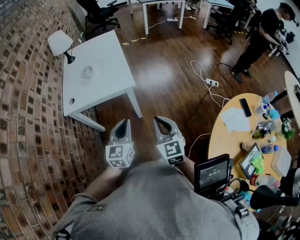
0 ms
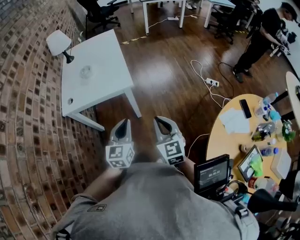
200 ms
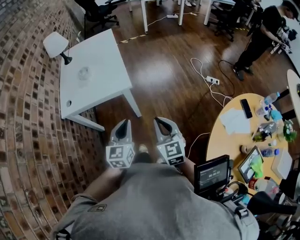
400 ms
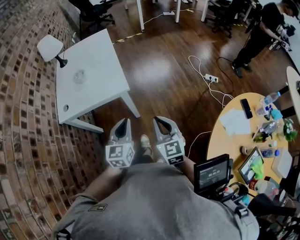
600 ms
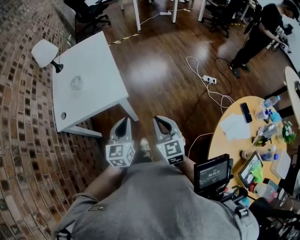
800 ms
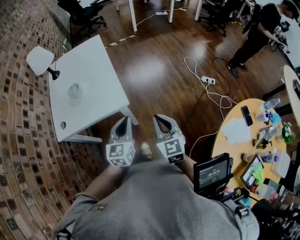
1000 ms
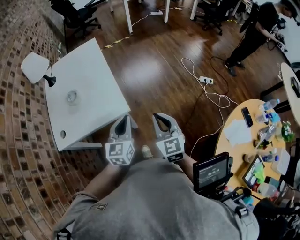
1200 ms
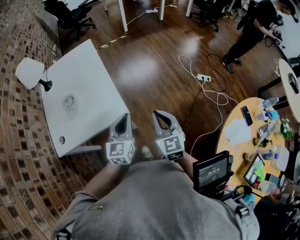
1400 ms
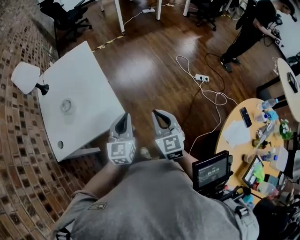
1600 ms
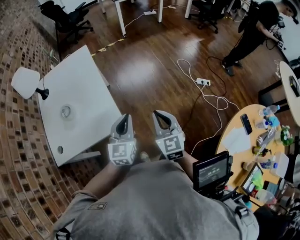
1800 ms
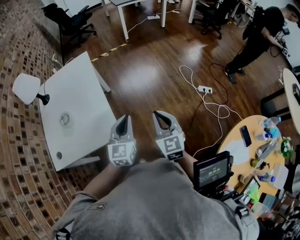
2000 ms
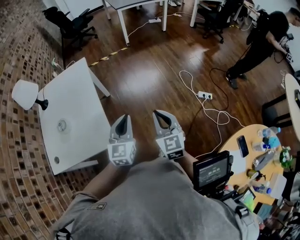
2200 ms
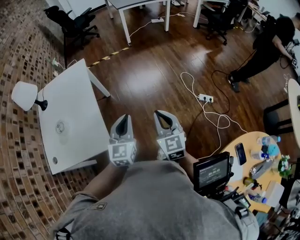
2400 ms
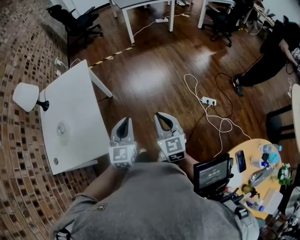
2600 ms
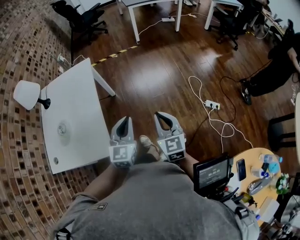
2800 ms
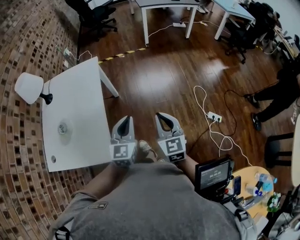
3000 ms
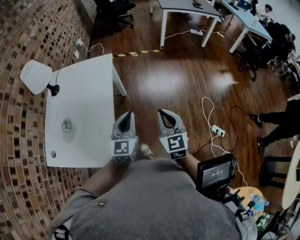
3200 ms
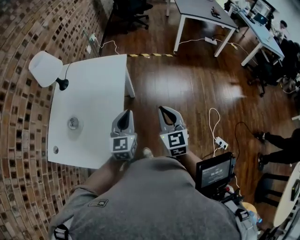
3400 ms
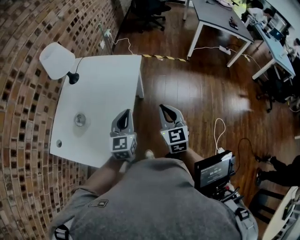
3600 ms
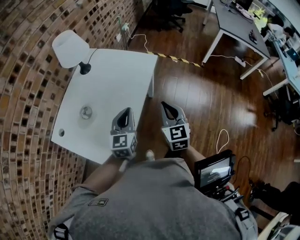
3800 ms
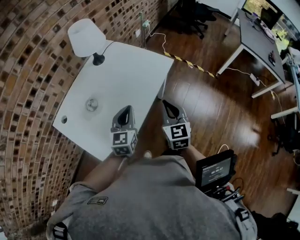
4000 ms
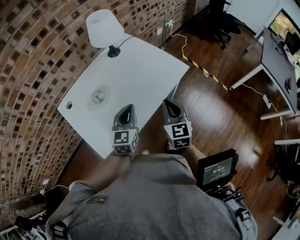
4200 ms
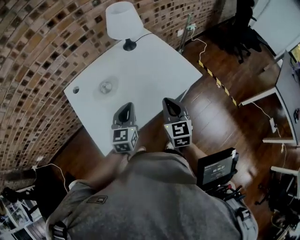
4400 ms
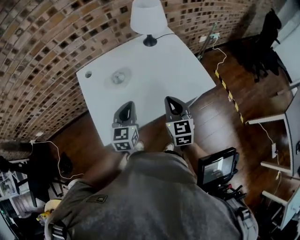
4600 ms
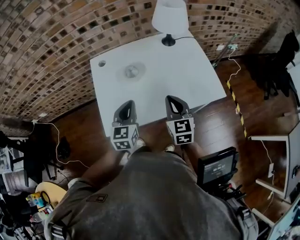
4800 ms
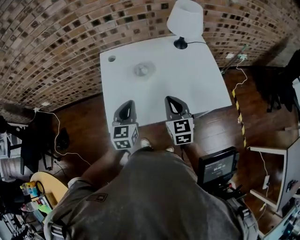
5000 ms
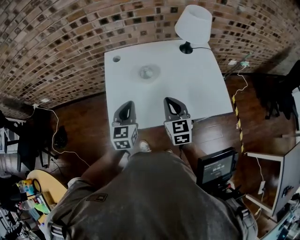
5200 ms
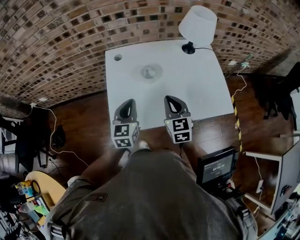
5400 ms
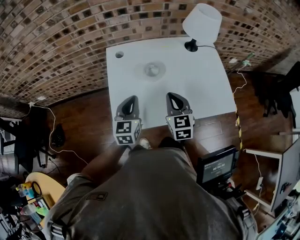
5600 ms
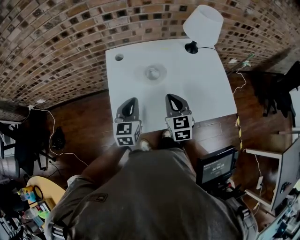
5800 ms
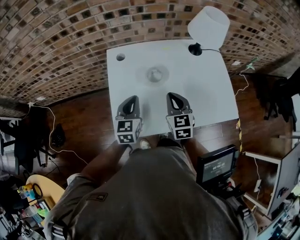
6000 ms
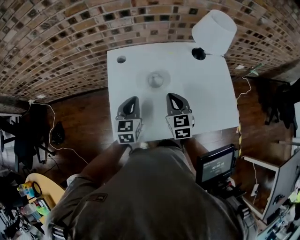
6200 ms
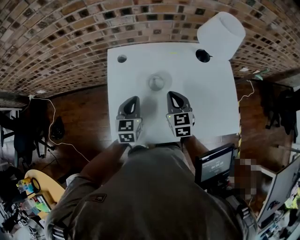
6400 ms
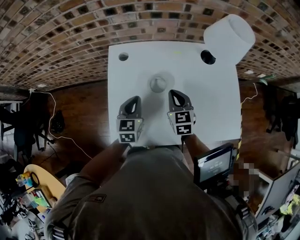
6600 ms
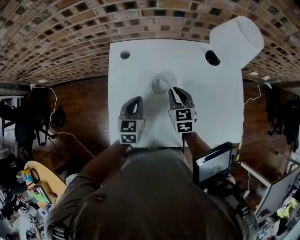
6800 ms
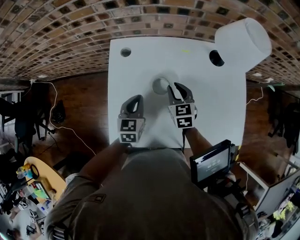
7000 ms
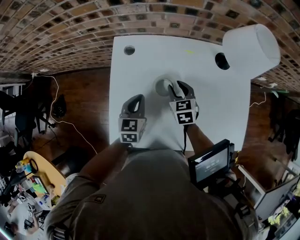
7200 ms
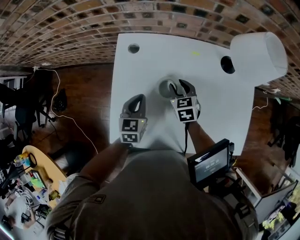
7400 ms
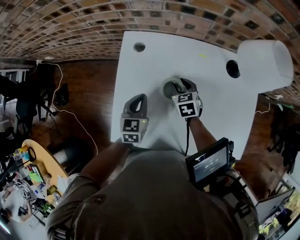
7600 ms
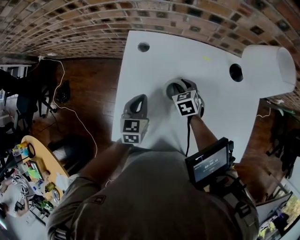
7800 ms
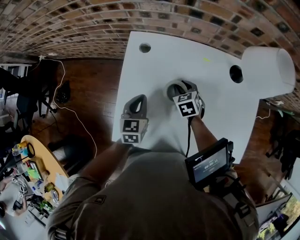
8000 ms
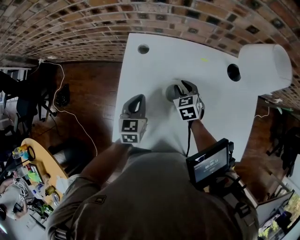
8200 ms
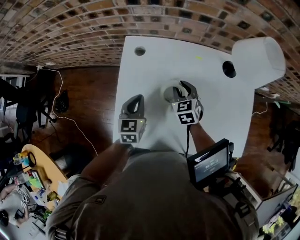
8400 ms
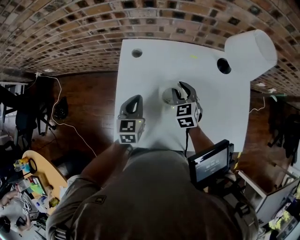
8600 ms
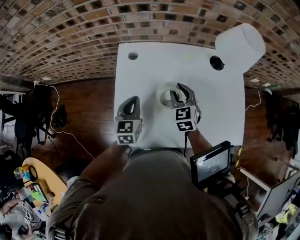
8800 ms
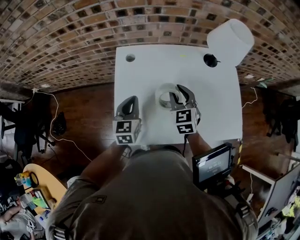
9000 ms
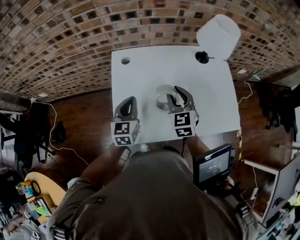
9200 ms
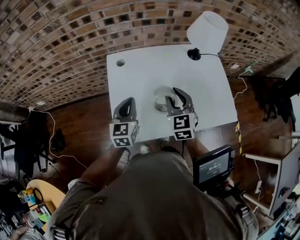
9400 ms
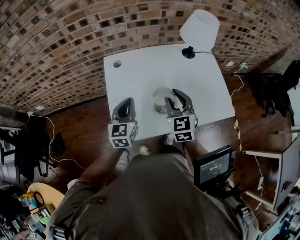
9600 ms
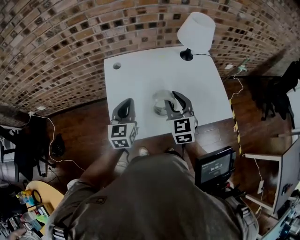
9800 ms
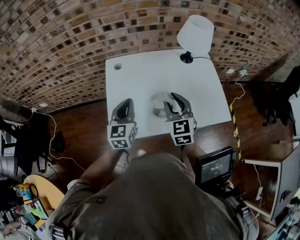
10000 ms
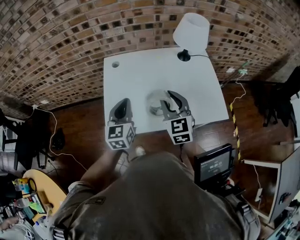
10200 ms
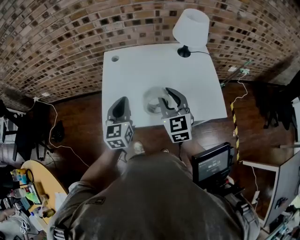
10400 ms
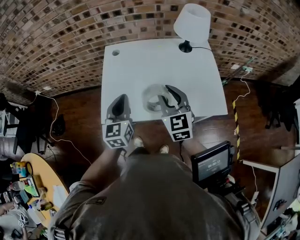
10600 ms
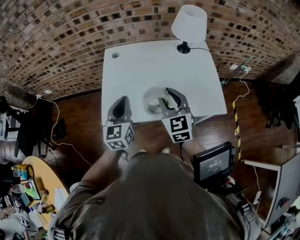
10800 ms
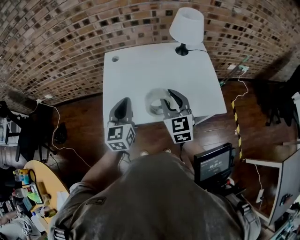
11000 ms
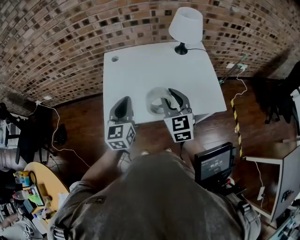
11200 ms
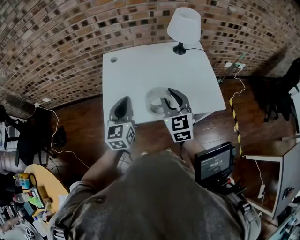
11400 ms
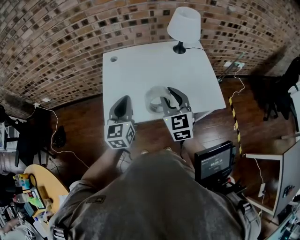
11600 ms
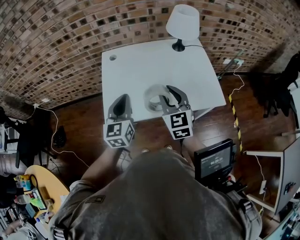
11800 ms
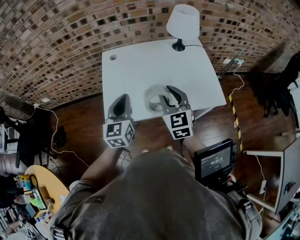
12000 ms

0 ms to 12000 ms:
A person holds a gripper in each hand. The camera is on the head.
0 ms to 1600 ms: The grippers both shift forward by approximately 25 cm.
1600 ms to 3000 ms: Both grippers move forward and to the right, some 25 cm.
3000 ms to 4400 ms: The left gripper changes place by some 30 cm, and rotates some 70 degrees, while the right gripper shifts by approximately 40 cm, and swivels approximately 60 degrees.
4400 ms to 6000 ms: The left gripper shifts by approximately 20 cm, and rotates roughly 30 degrees. Meanwhile the right gripper shifts by about 20 cm, and swivels approximately 30 degrees.
6000 ms to 7600 ms: The left gripper shifts about 10 cm downward and forward, while the right gripper goes roughly 25 cm forward and downward, swivels some 30 degrees, and opens its fingers.
7600 ms to 9000 ms: The right gripper moves upward and backward, about 15 cm, and swivels about 30 degrees; the left gripper moves upward, approximately 5 cm.
9000 ms to 10400 ms: The two grippers go some 20 cm backward, upward and to the right.
10400 ms to 12000 ms: The grippers stay close to where they were, moving slightly.

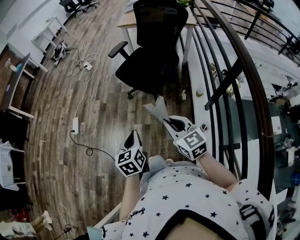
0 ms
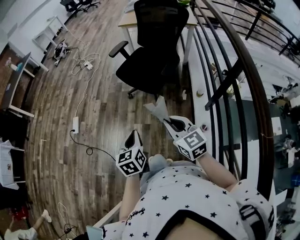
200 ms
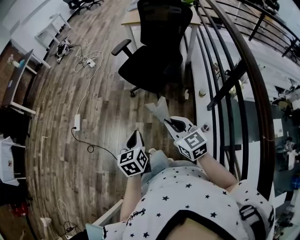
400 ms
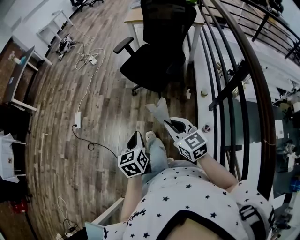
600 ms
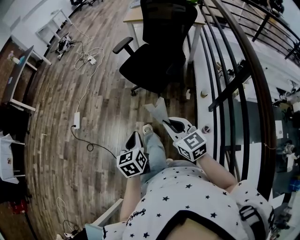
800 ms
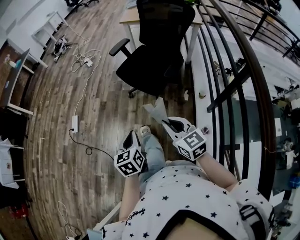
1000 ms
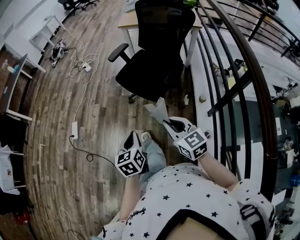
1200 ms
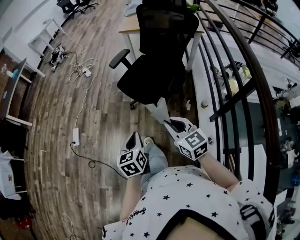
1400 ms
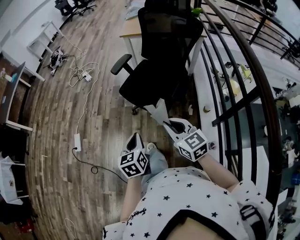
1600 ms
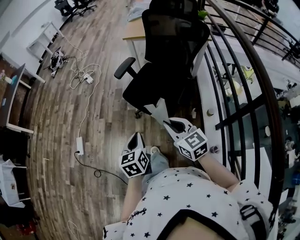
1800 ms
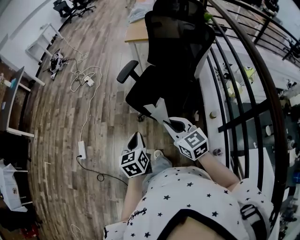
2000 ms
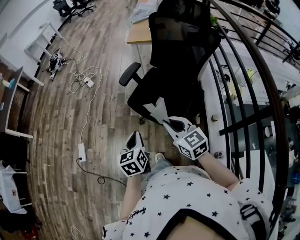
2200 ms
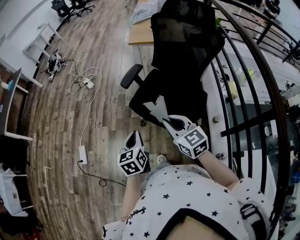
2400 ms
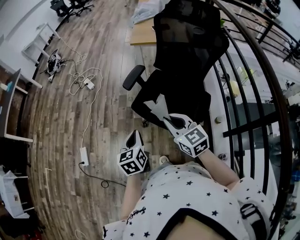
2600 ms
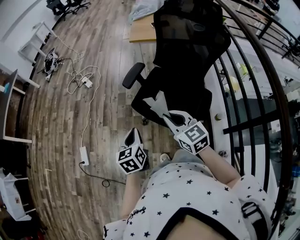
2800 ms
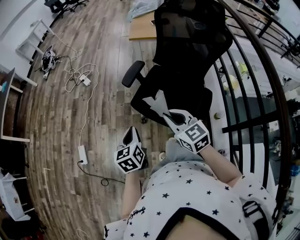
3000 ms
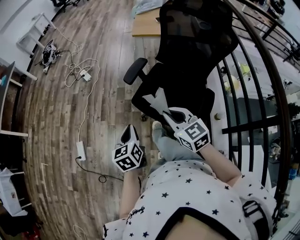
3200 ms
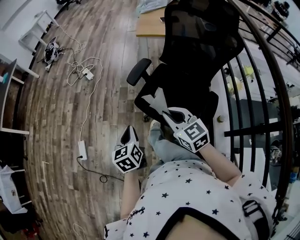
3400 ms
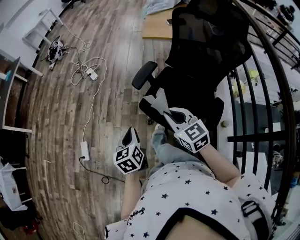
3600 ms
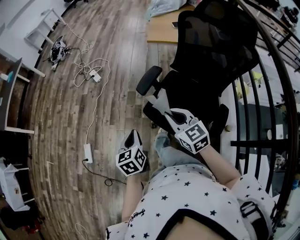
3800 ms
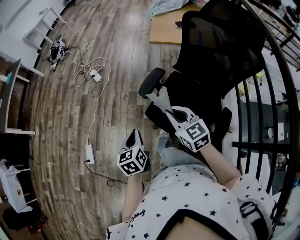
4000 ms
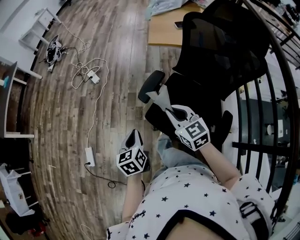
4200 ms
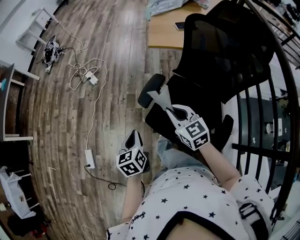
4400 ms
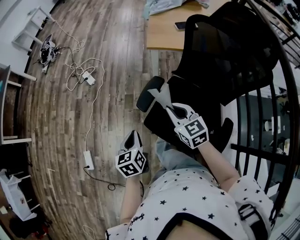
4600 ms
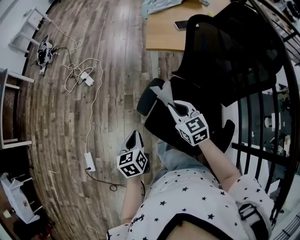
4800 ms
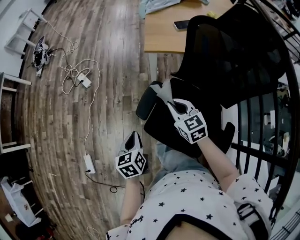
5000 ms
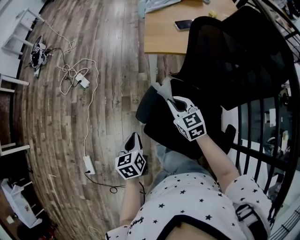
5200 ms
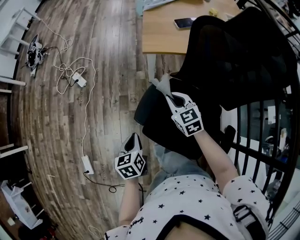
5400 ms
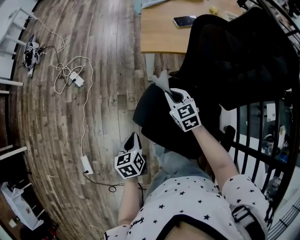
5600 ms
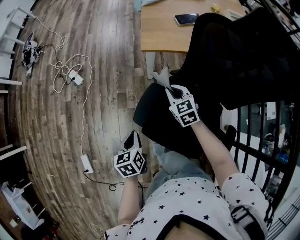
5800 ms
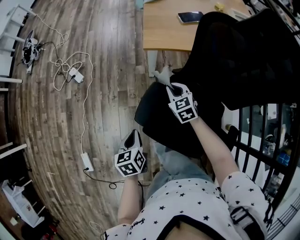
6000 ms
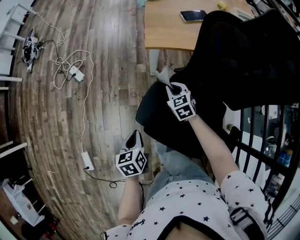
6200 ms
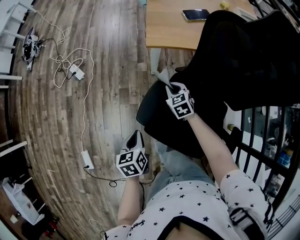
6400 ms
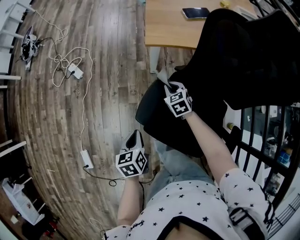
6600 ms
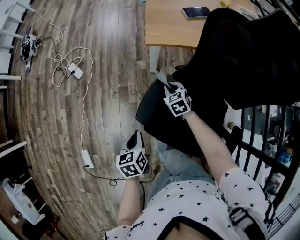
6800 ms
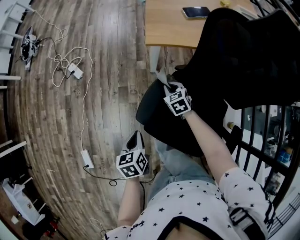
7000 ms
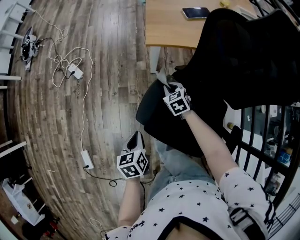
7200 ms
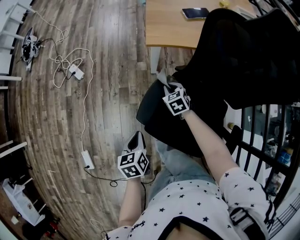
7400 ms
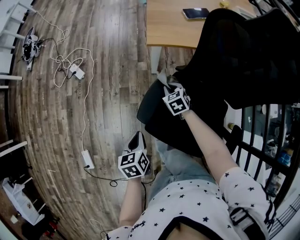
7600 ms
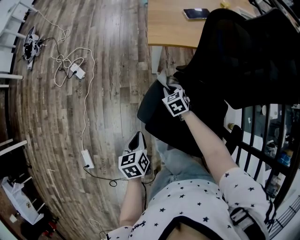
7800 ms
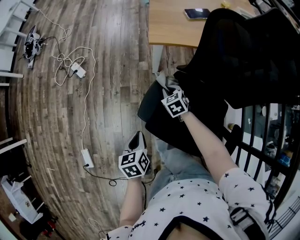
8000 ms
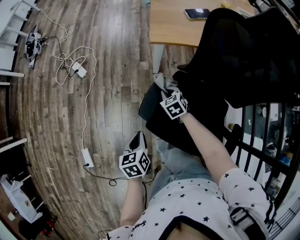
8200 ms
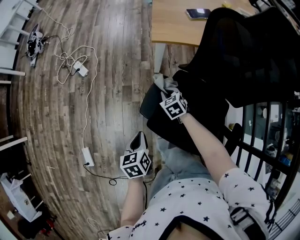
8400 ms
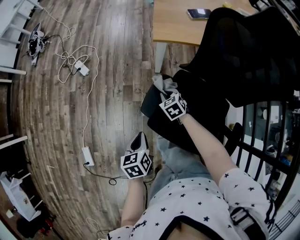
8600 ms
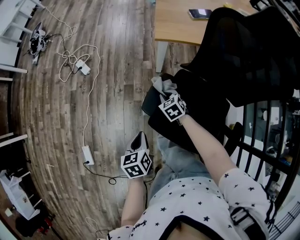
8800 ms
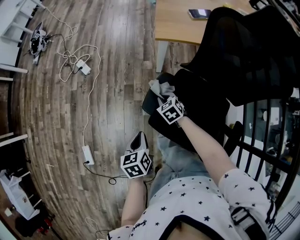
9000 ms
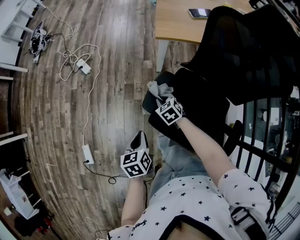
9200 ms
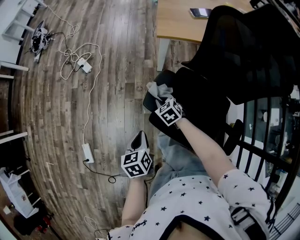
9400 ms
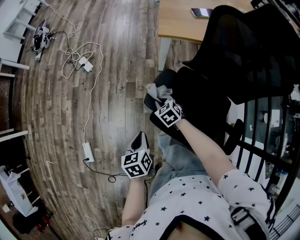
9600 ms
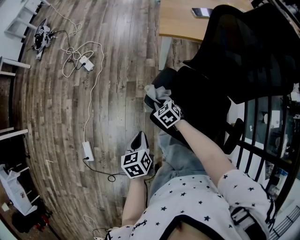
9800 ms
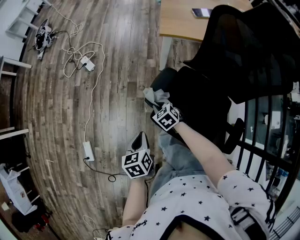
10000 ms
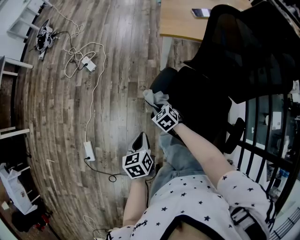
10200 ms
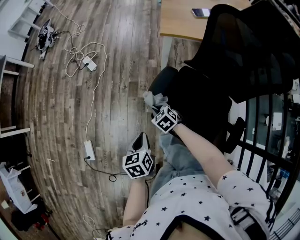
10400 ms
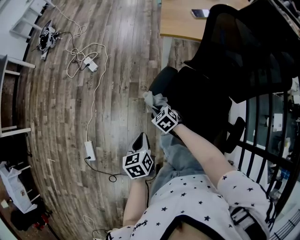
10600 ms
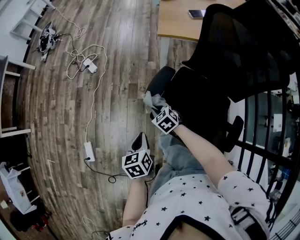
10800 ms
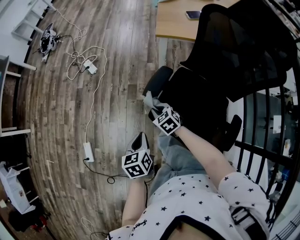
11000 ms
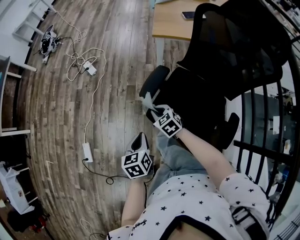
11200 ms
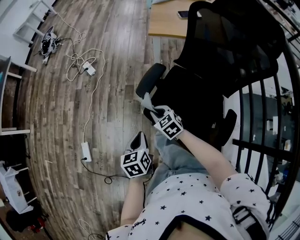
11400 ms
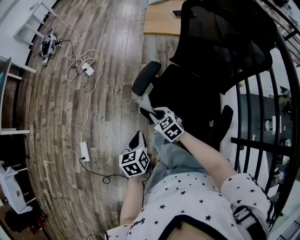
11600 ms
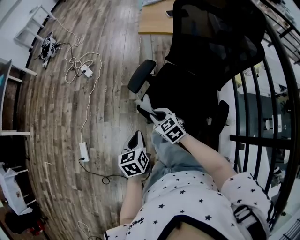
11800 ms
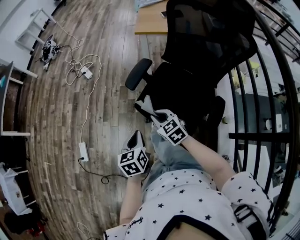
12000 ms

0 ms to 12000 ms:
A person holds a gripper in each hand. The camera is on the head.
0 ms to 1600 ms: The two grippers go about 20 cm forward.
1600 ms to 3000 ms: Both grippers travel together forward, about 25 cm.
3000 ms to 4400 ms: Both grippers move forward, about 20 cm.
4400 ms to 6000 ms: The right gripper heads forward and downward, covering some 30 cm, and changes its angle by approximately 20 degrees. Meanwhile the left gripper shifts about 15 cm forward and downward.
6000 ms to 7600 ms: The right gripper moves downward, roughly 10 cm.
7600 ms to 9000 ms: The left gripper shifts about 5 cm backward; the right gripper moves backward and to the left, approximately 10 cm.
9000 ms to 10400 ms: The left gripper changes place by approximately 5 cm, while the right gripper heads to the left and backward, covering some 10 cm.
10400 ms to 12000 ms: The left gripper travels backward by some 15 cm; the right gripper shifts some 25 cm backward and upward, and swivels about 20 degrees.
